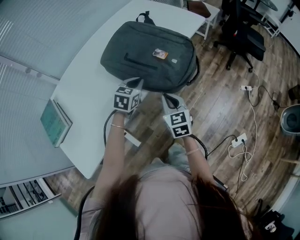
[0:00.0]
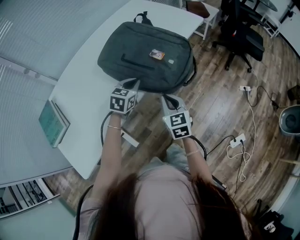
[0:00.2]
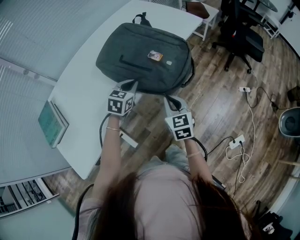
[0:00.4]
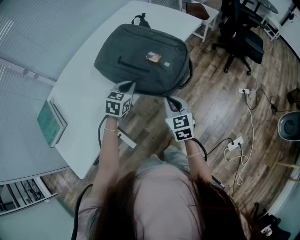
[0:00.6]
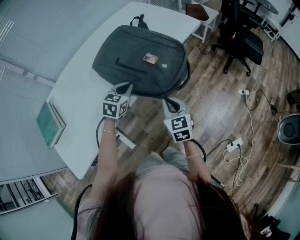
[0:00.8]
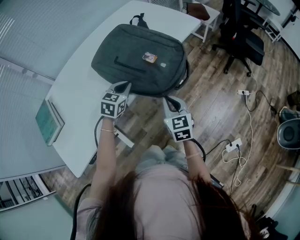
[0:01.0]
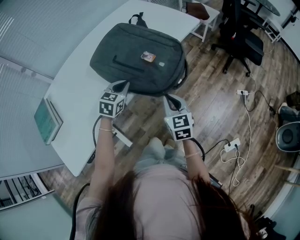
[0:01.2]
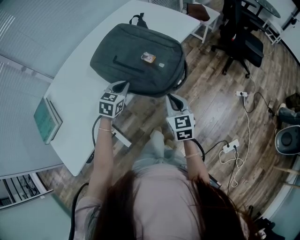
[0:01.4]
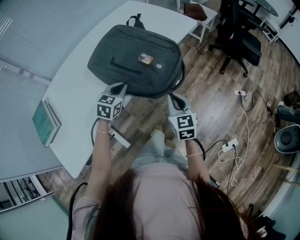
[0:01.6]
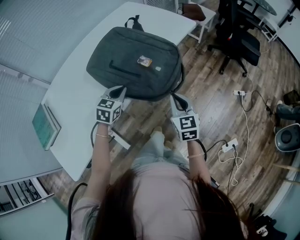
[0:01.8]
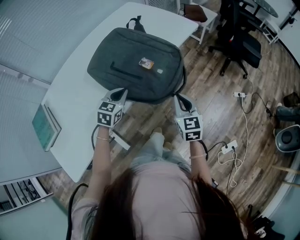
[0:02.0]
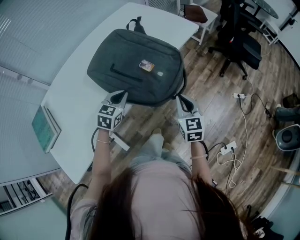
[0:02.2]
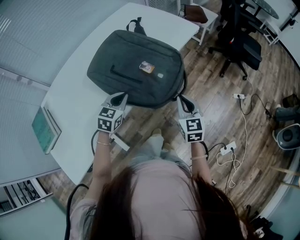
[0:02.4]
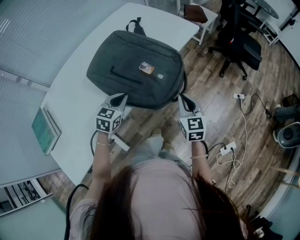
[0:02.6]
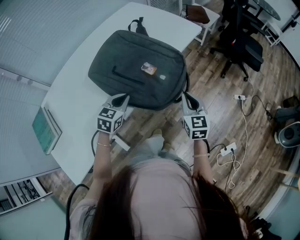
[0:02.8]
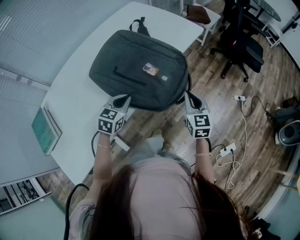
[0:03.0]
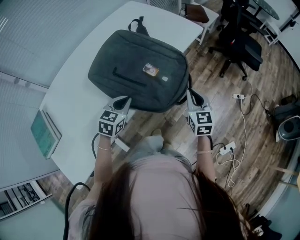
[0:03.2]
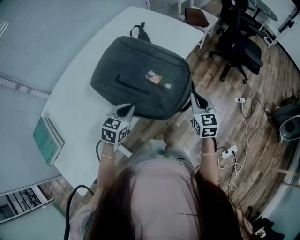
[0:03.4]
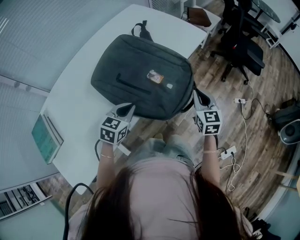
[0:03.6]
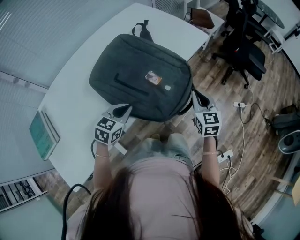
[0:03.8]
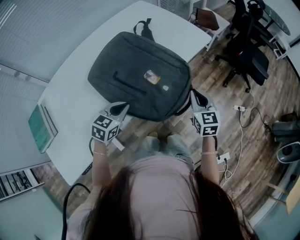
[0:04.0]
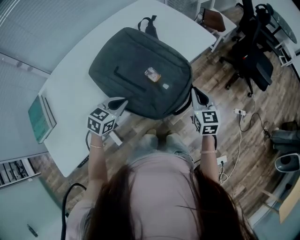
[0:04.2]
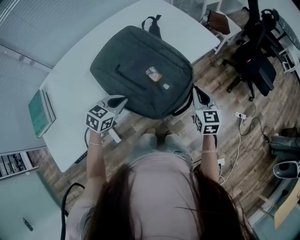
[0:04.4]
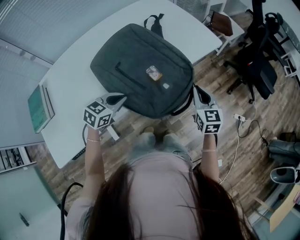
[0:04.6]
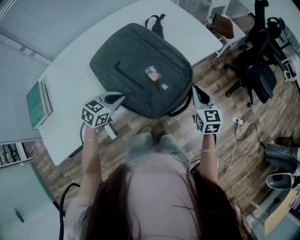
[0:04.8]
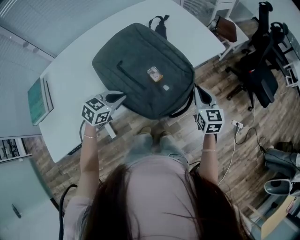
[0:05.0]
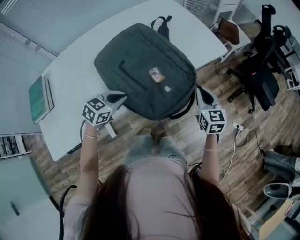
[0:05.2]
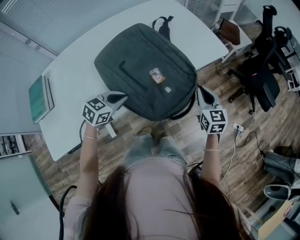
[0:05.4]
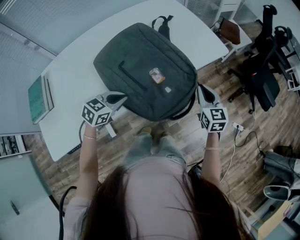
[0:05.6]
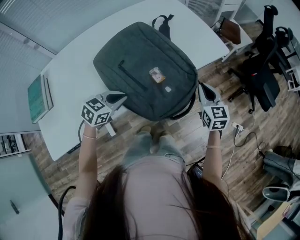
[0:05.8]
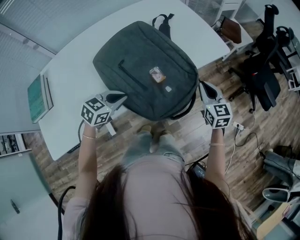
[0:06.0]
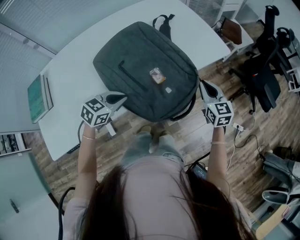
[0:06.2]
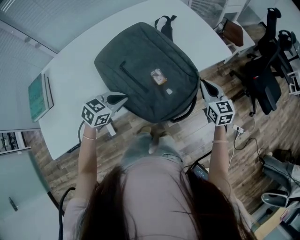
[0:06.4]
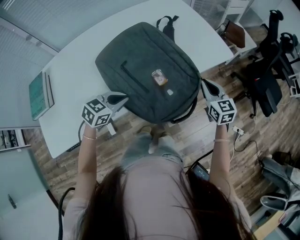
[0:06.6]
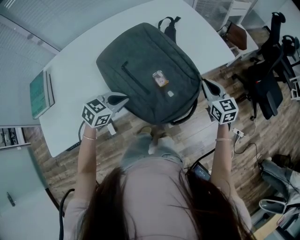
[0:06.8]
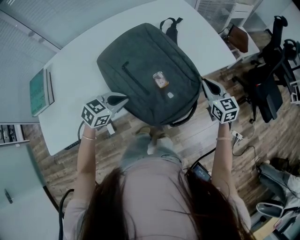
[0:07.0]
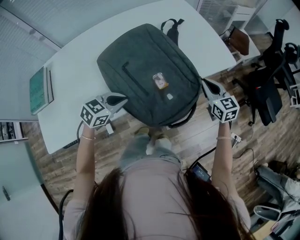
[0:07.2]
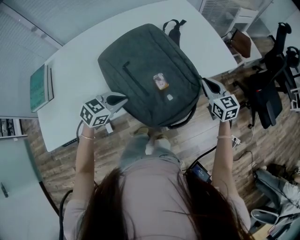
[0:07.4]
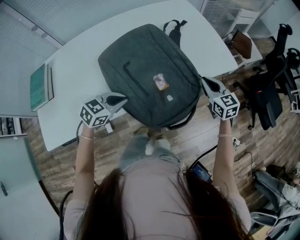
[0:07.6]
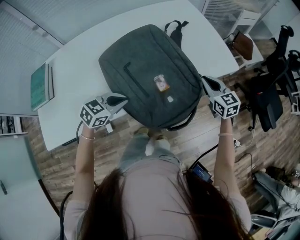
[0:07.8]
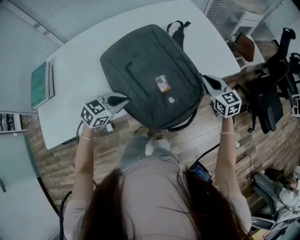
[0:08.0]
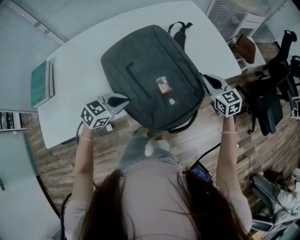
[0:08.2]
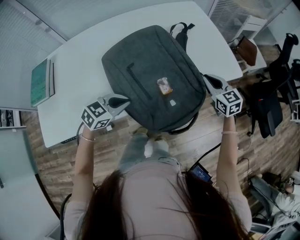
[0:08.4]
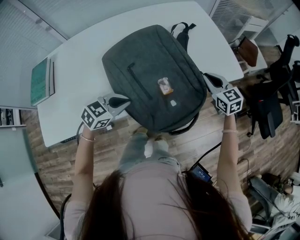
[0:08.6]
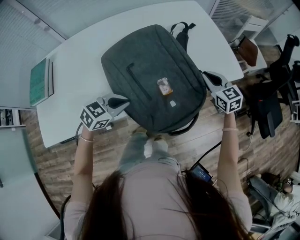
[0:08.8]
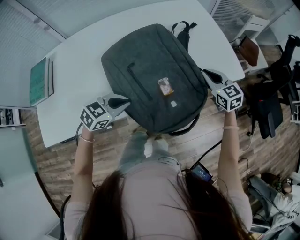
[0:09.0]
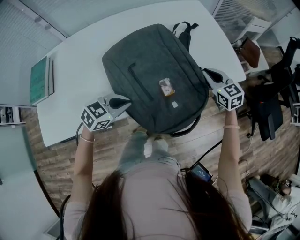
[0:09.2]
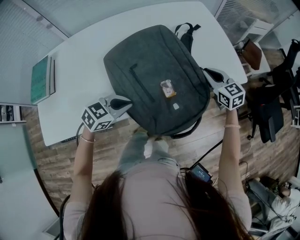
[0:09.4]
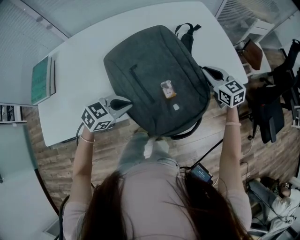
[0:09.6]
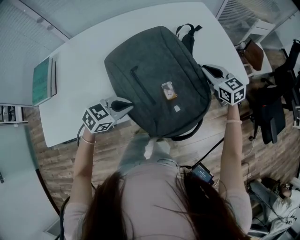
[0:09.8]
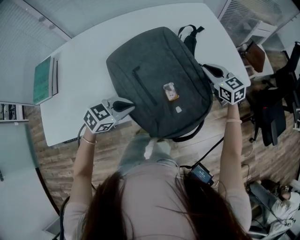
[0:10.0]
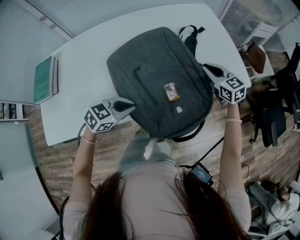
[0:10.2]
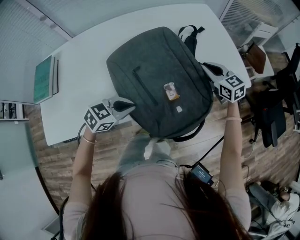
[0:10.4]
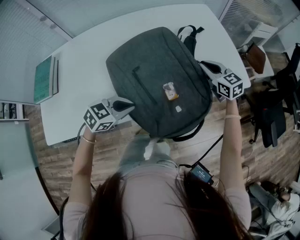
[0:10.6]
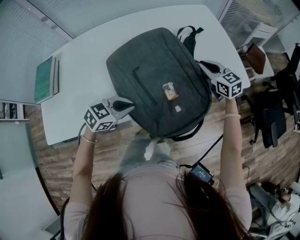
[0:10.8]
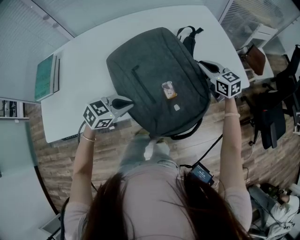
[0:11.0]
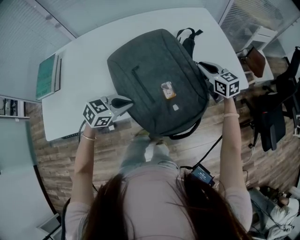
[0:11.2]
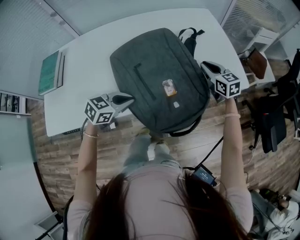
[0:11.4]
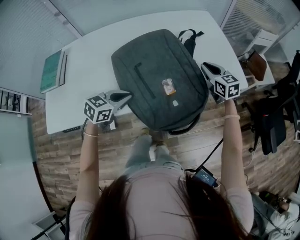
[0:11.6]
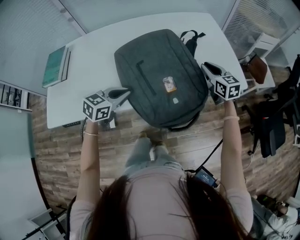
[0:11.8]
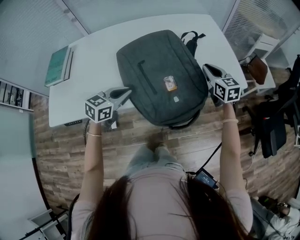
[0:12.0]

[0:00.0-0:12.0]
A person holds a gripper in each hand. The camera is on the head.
0:00.0 to 0:01.6: The right gripper goes roughly 10 cm to the right.
0:01.6 to 0:03.0: The right gripper moves forward and to the right, about 10 cm.
0:03.0 to 0:04.4: The right gripper is displaced forward by about 10 cm.
0:04.4 to 0:06.0: The right gripper is displaced forward by approximately 5 cm.
0:06.0 to 0:07.6: The right gripper shifts some 10 cm forward.
0:07.6 to 0:09.0: The right gripper travels forward by some 5 cm.
0:09.0 to 0:10.4: The right gripper ends up roughly 5 cm from where it was.
0:10.4 to 0:12.0: The right gripper changes place by roughly 5 cm. Meanwhile the left gripper travels upward by roughly 5 cm, and rotates some 30 degrees.

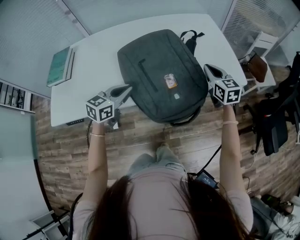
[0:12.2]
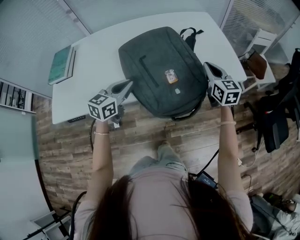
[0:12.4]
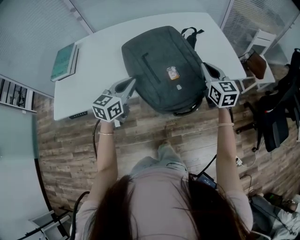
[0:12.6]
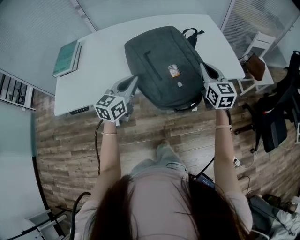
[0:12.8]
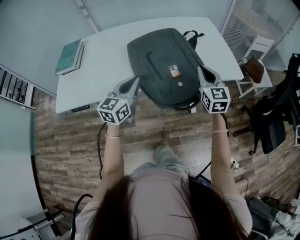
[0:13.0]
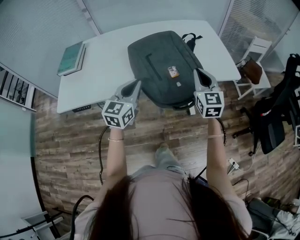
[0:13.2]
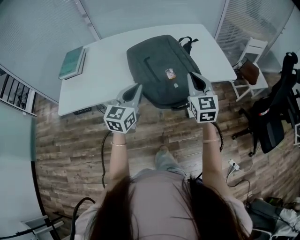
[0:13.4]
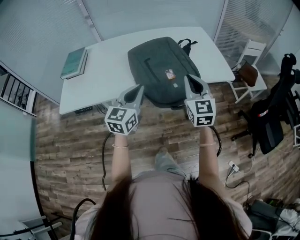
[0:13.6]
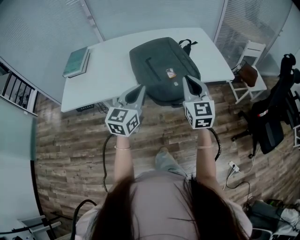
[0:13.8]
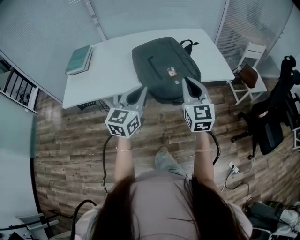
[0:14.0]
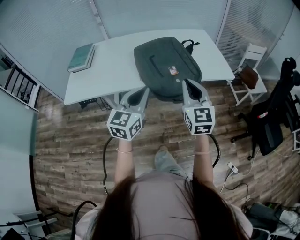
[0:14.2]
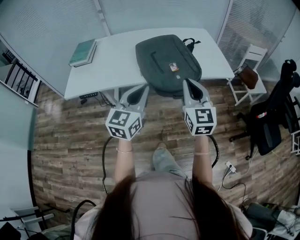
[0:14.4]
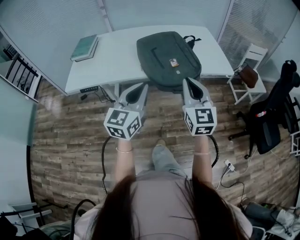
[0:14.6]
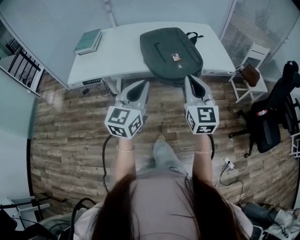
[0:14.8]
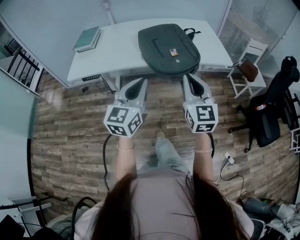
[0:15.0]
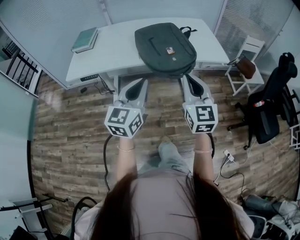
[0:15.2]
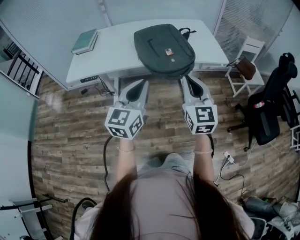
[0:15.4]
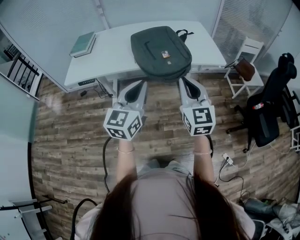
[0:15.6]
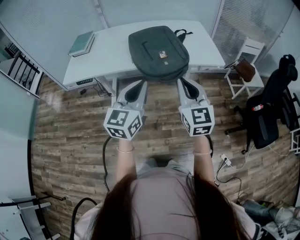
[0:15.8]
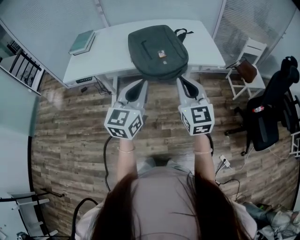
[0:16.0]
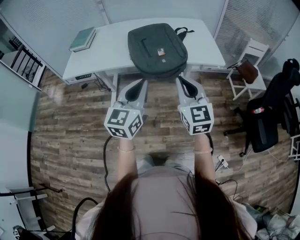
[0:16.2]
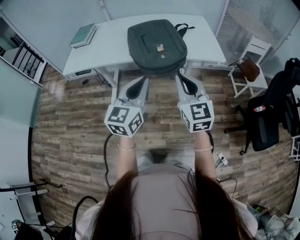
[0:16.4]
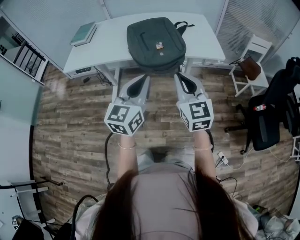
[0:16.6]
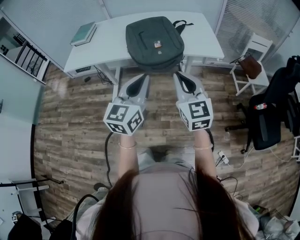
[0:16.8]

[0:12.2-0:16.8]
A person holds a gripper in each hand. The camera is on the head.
0:12.2 to 0:13.8: Both grippers move backward and upward, about 25 cm. The left gripper turns by about 30 degrees, while the right gripper turns by some 20 degrees.
0:13.8 to 0:15.2: The grippers both shift backward by roughly 20 cm.
0:15.2 to 0:16.8: The two grippers go roughly 10 cm to the right.

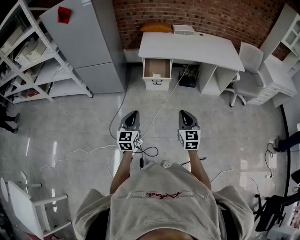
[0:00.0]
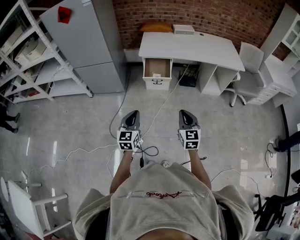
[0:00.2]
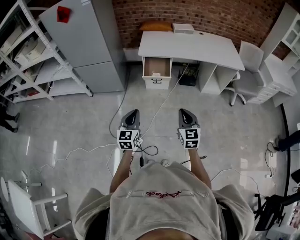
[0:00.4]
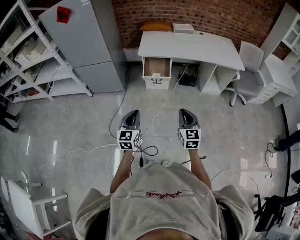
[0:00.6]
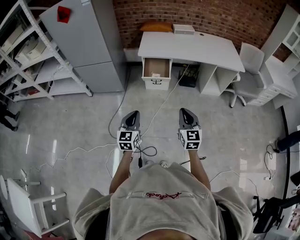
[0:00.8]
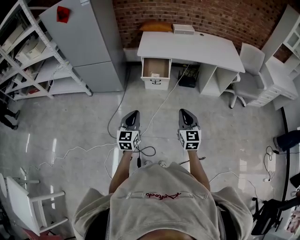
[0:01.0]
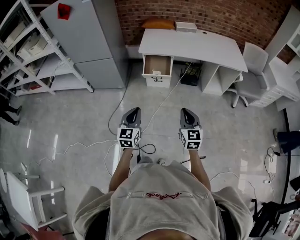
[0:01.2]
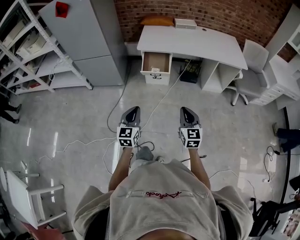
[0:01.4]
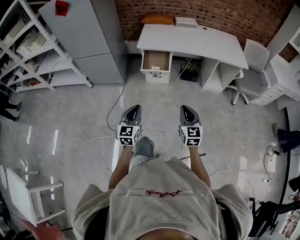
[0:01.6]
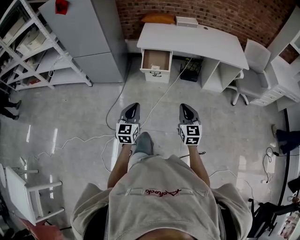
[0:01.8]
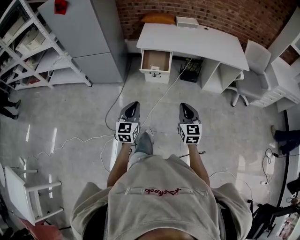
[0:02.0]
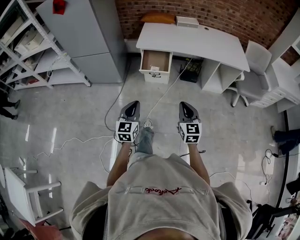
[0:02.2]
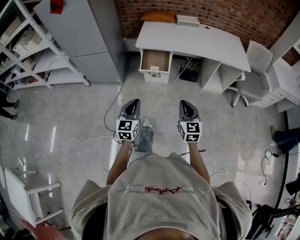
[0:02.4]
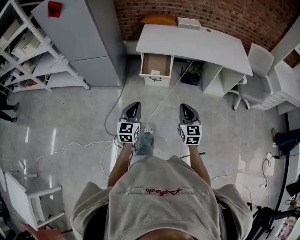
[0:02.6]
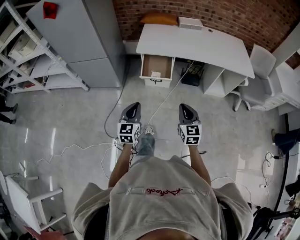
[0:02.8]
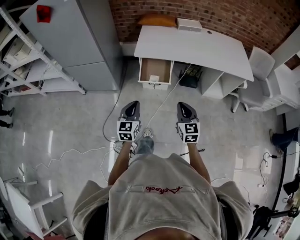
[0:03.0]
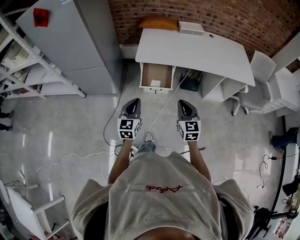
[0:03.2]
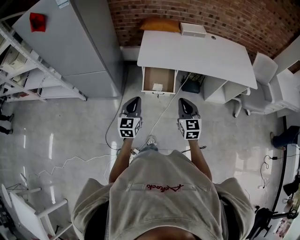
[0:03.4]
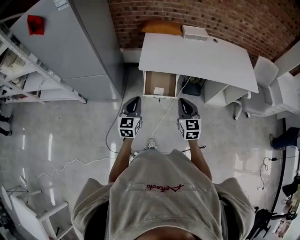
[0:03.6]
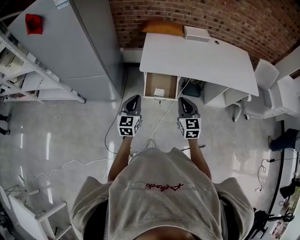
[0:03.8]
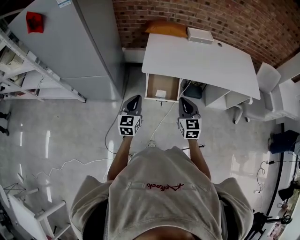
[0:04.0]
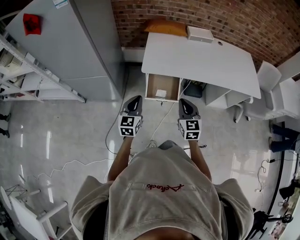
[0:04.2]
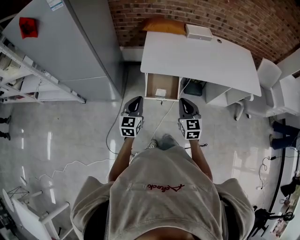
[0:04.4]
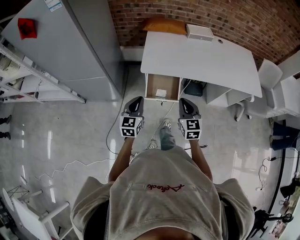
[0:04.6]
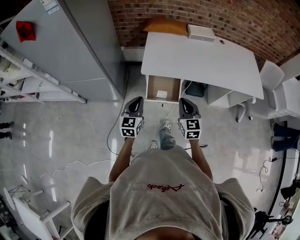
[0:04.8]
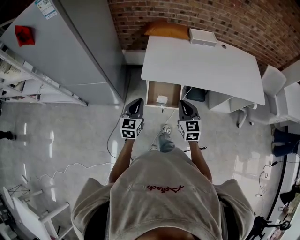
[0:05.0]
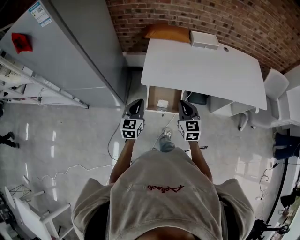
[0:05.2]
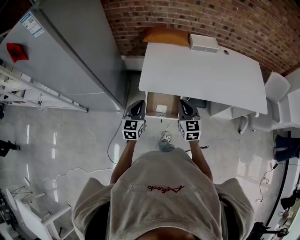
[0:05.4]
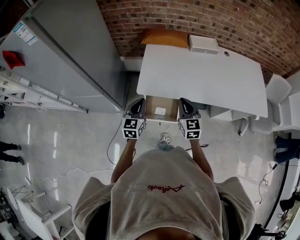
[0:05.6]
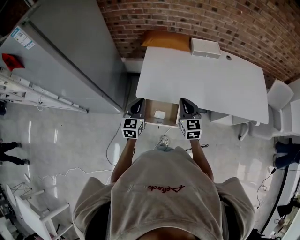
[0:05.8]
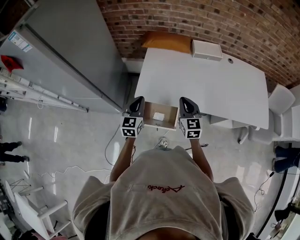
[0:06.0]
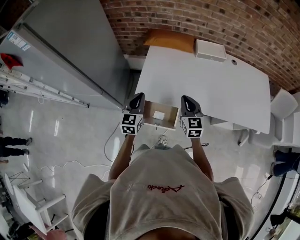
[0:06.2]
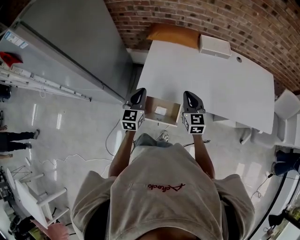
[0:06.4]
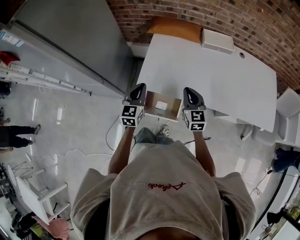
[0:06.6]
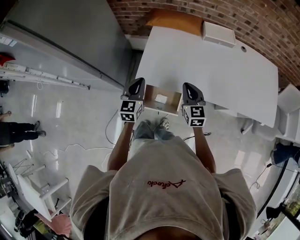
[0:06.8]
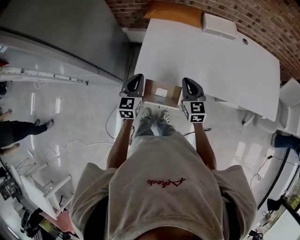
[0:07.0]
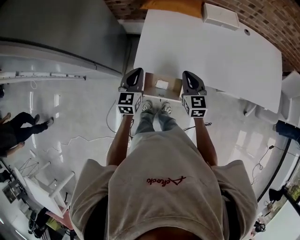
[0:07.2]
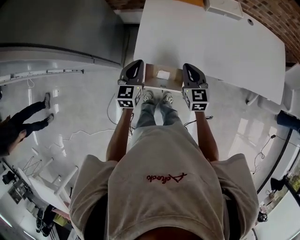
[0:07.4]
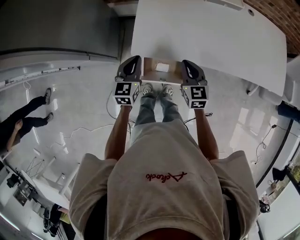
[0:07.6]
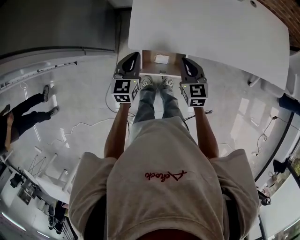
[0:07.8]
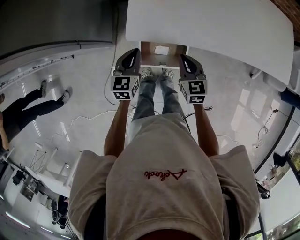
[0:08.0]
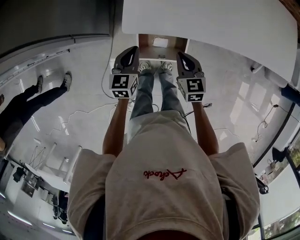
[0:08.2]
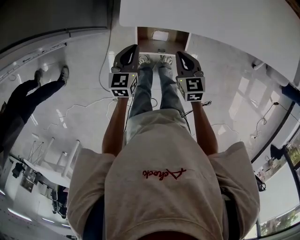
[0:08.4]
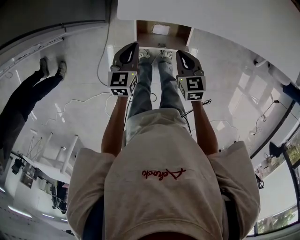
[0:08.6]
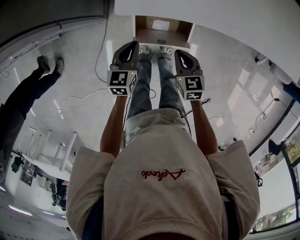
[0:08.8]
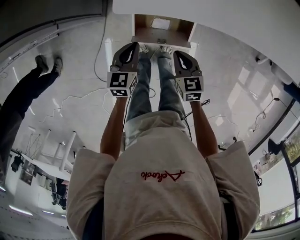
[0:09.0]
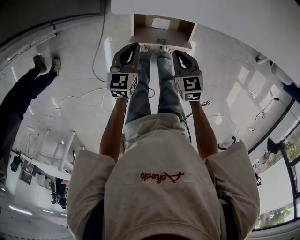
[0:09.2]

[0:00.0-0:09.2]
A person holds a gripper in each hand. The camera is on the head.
0:00.0 to 0:01.6: Both grippers move to the right, some 5 cm.
0:01.6 to 0:03.0: The grippers both shift forward by about 20 cm.
0:03.0 to 0:04.6: Both grippers travel together forward, about 20 cm.
0:04.6 to 0:06.2: Both grippers travel together forward, approximately 25 cm.
0:06.2 to 0:07.6: The two grippers go some 10 cm downward.
0:07.6 to 0:09.2: The two grippers go roughly 20 cm downward and backward. The right gripper changes its angle by about 20 degrees.
